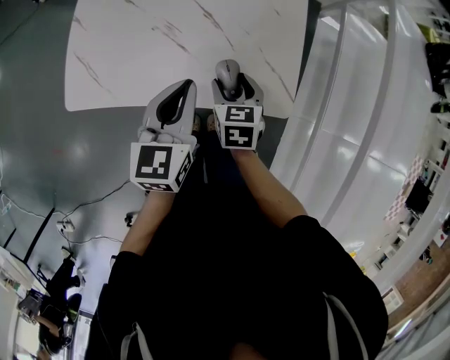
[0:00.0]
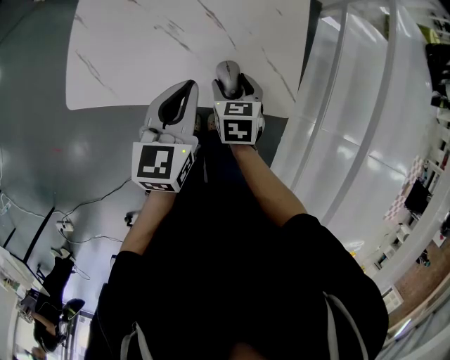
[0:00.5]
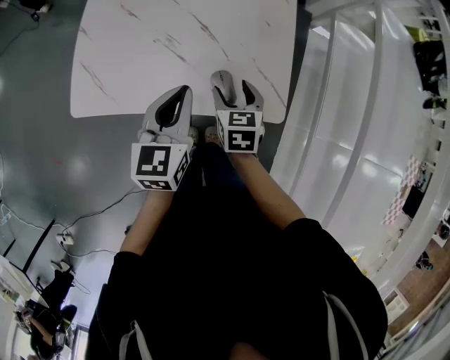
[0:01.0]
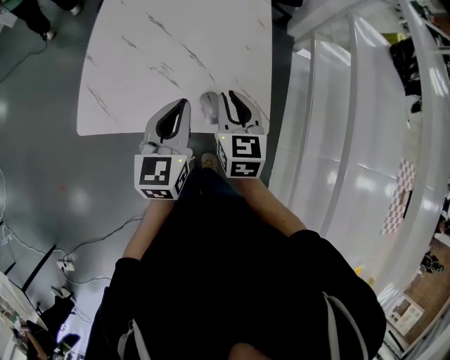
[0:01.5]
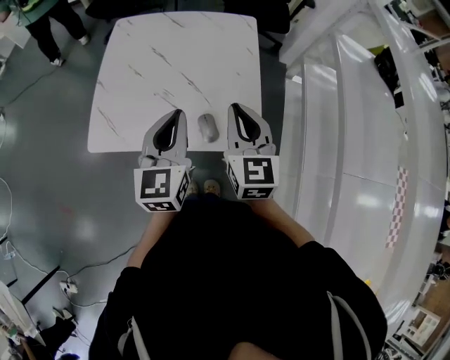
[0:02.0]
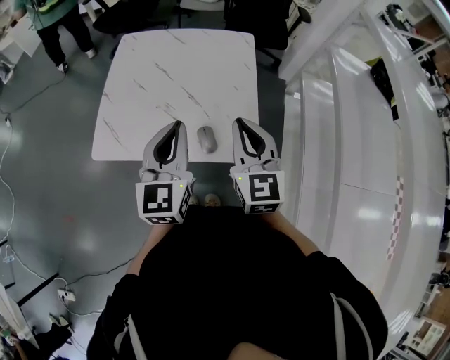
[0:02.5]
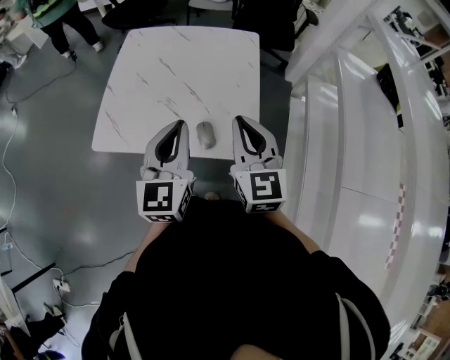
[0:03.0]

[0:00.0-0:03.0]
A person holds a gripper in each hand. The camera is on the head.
0:00.0 to 0:01.5: The left gripper moves upward, roughly 5 cm. Meanwhile the right gripper shifts approximately 15 cm upward, swivels roughly 20 degrees, and closes up.
0:01.5 to 0:03.0: The left gripper heads upward, covering about 10 cm; the right gripper heads upward and backward, covering approximately 15 cm, and turns by some 20 degrees.

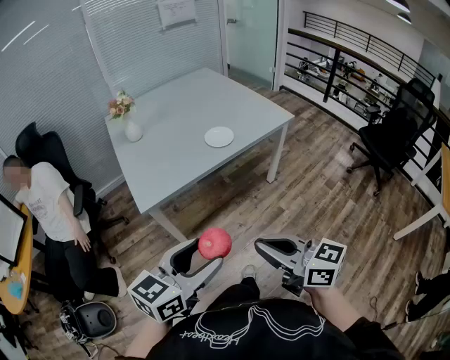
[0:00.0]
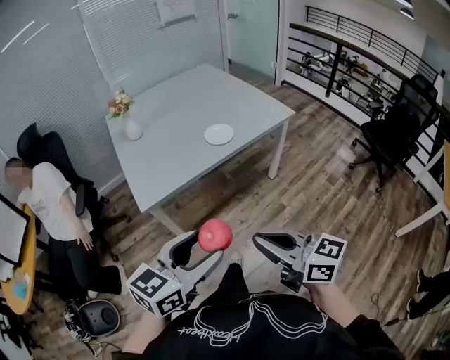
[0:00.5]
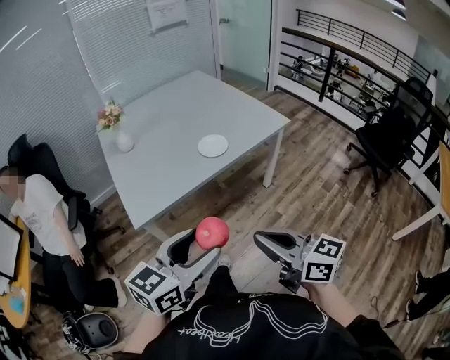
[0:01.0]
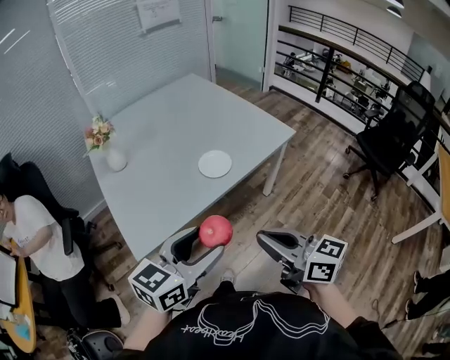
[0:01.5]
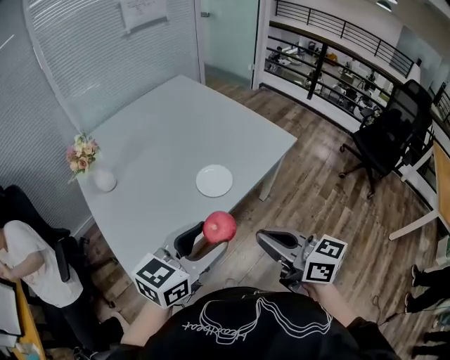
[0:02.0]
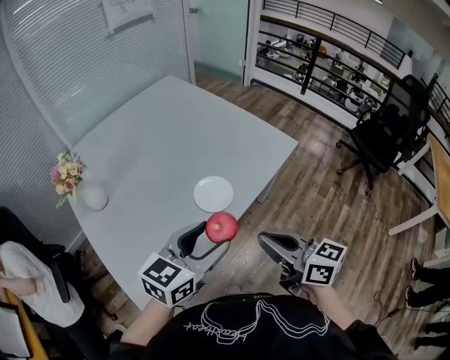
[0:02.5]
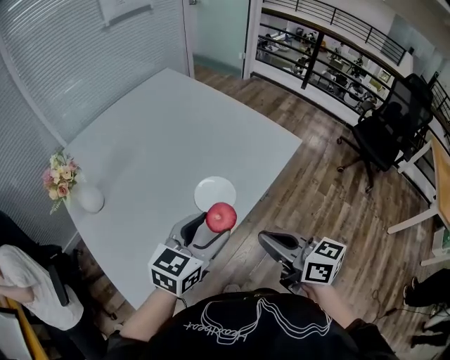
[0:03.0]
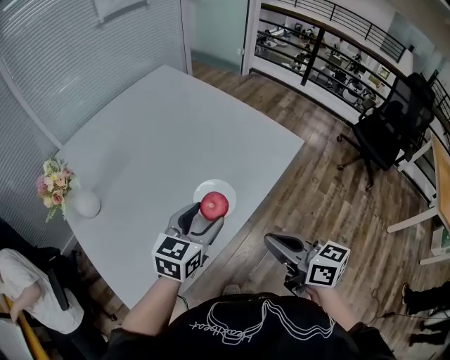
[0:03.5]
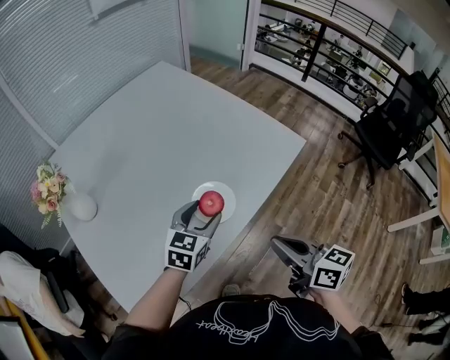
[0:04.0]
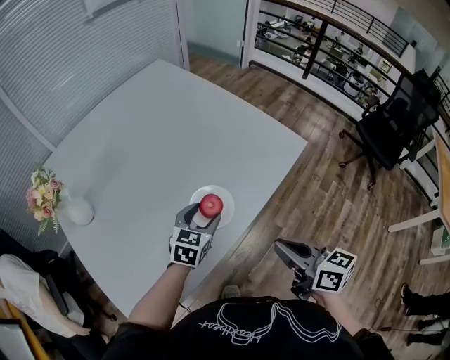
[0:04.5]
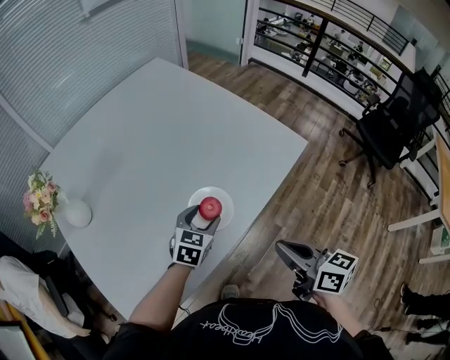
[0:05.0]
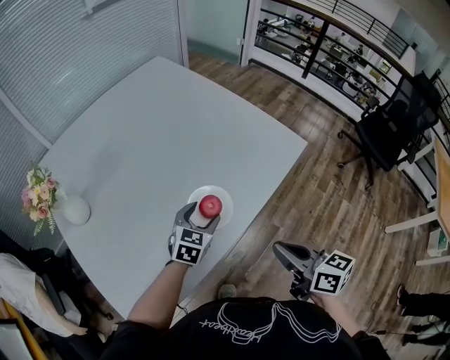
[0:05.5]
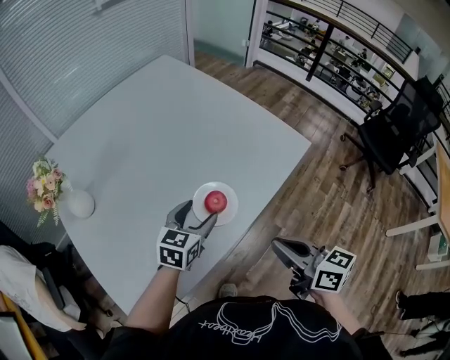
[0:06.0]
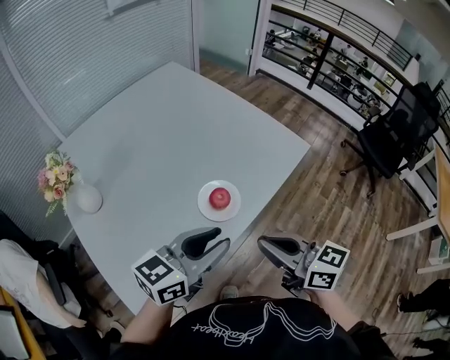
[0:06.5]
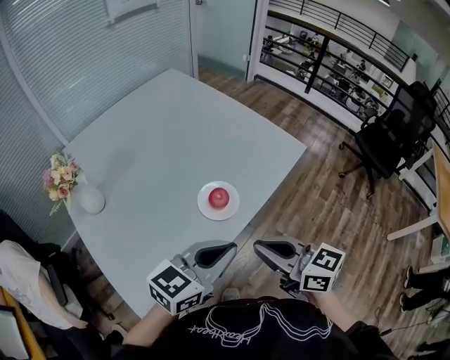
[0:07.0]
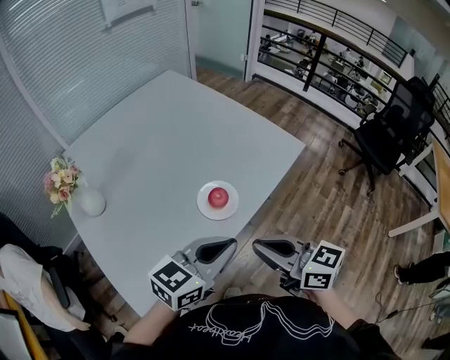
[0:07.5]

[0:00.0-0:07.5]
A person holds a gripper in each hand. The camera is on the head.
0:00.0 to 0:02.0: Both grippers move forward, some 35 cm.
0:02.0 to 0:04.0: The right gripper moves forward and downward, about 15 cm, while the left gripper travels forward and downward by some 30 cm.
0:04.0 to 0:05.5: The left gripper goes approximately 10 cm downward.
0:05.5 to 0:07.5: The left gripper moves upward and backward, approximately 25 cm, swivels approximately 30 degrees, and closes its fingers; the right gripper moves to the left, upward and backward, roughly 15 cm, and swivels roughly 20 degrees.

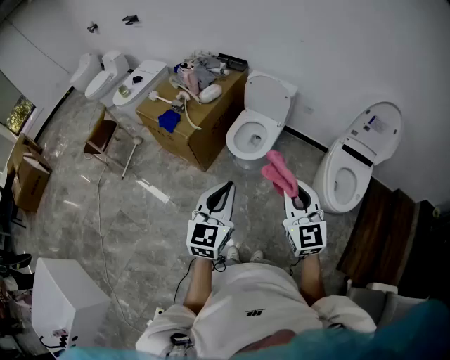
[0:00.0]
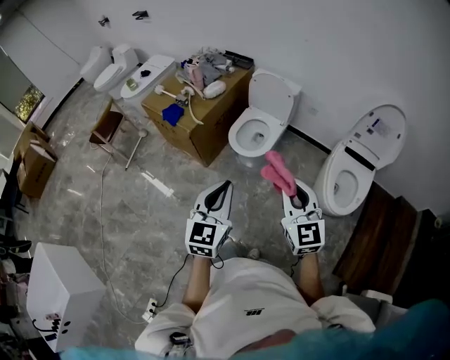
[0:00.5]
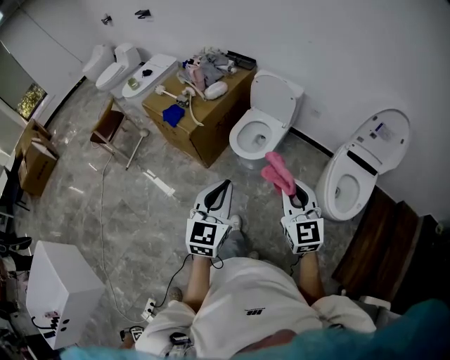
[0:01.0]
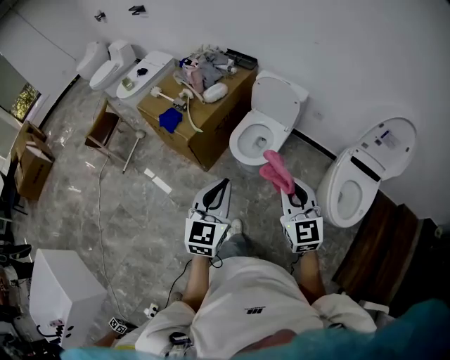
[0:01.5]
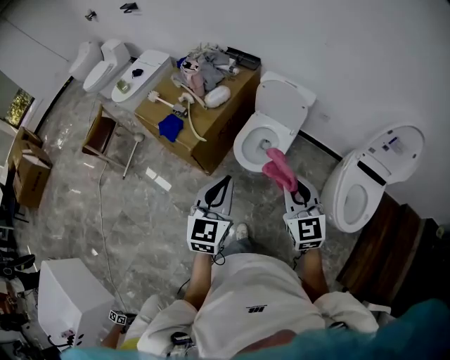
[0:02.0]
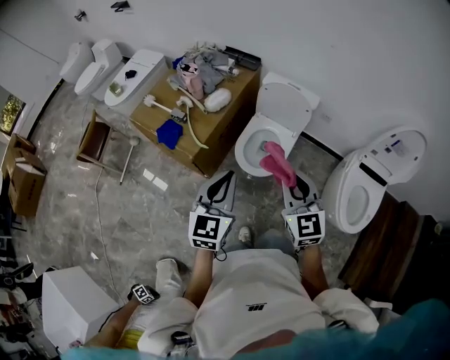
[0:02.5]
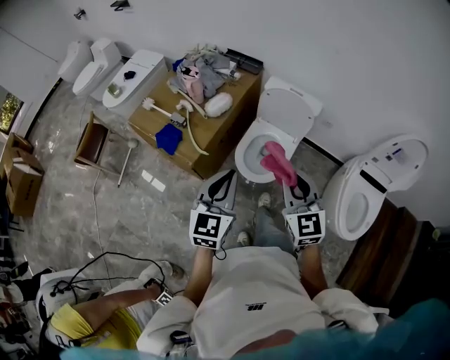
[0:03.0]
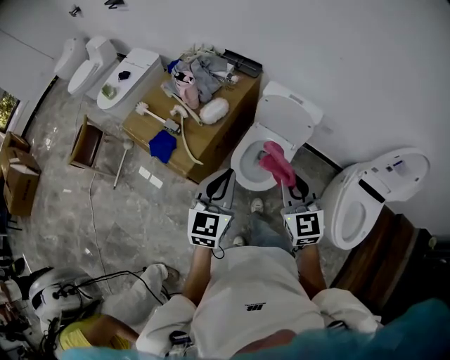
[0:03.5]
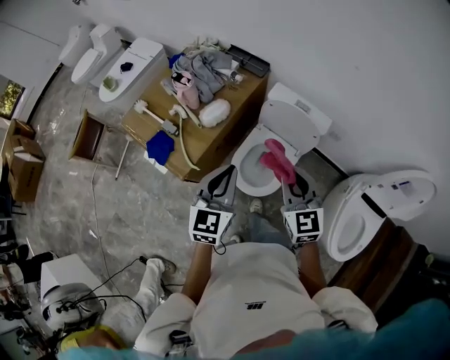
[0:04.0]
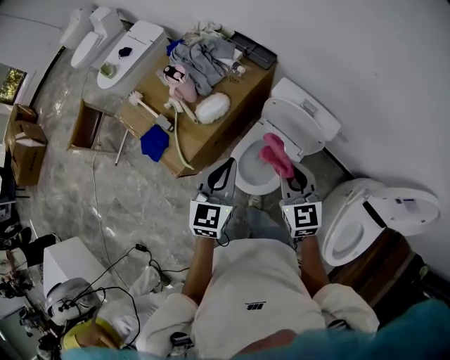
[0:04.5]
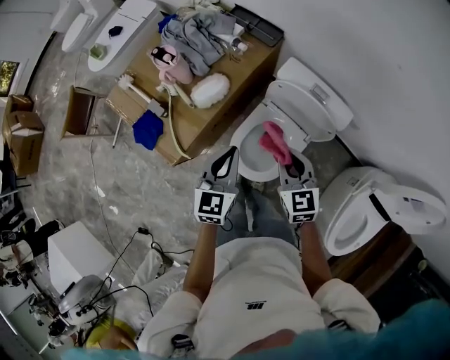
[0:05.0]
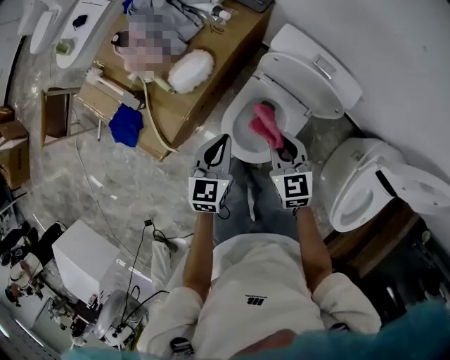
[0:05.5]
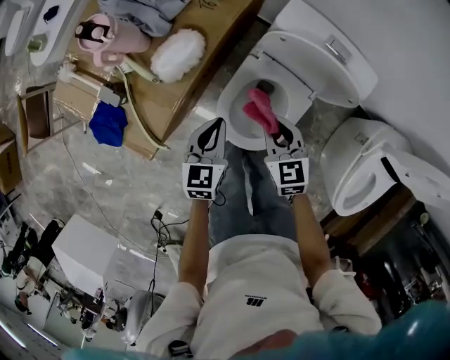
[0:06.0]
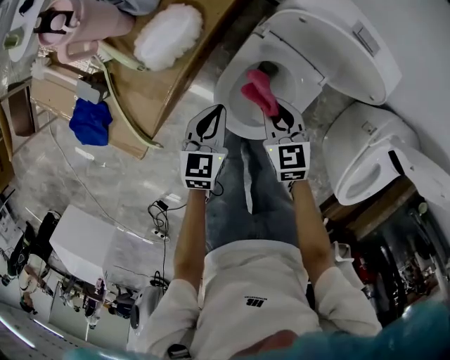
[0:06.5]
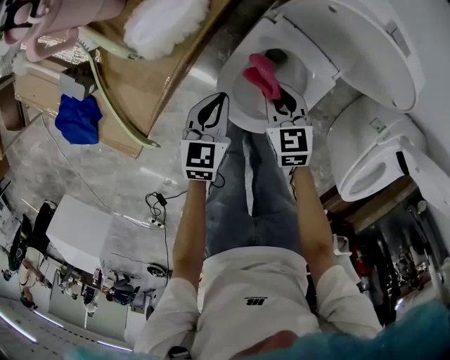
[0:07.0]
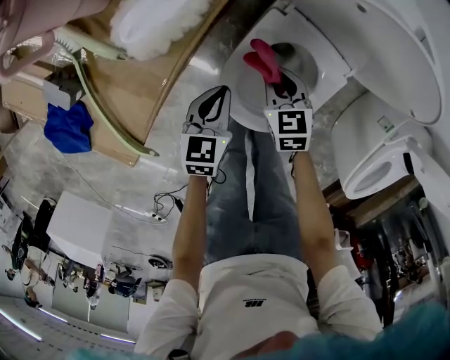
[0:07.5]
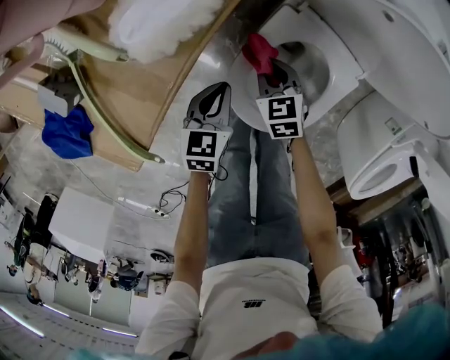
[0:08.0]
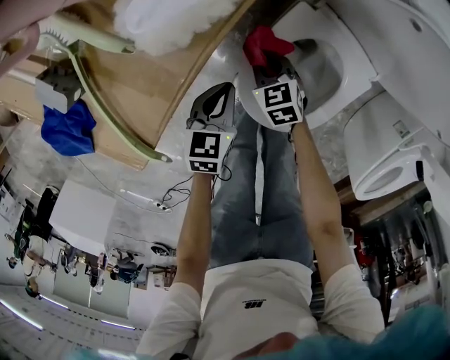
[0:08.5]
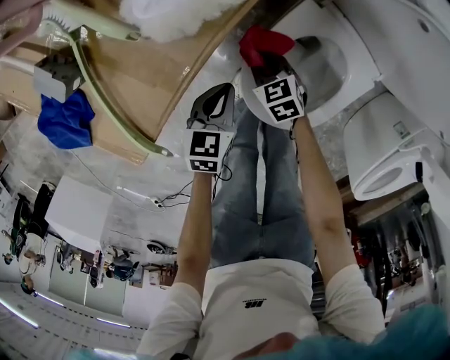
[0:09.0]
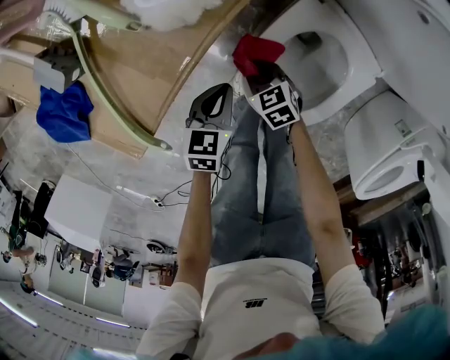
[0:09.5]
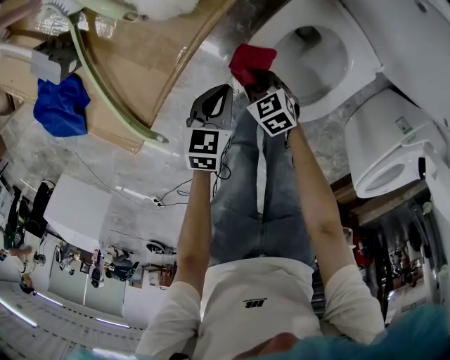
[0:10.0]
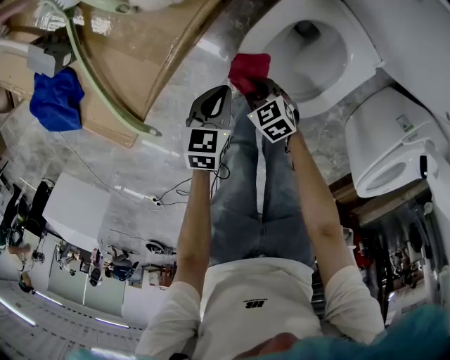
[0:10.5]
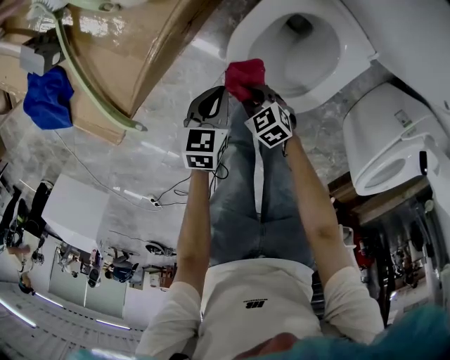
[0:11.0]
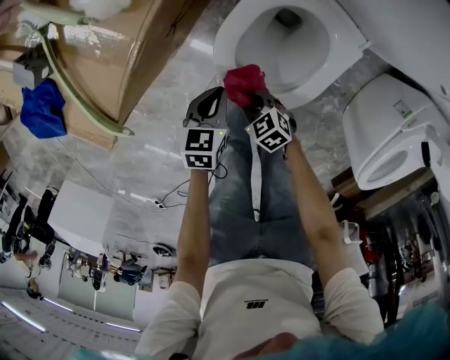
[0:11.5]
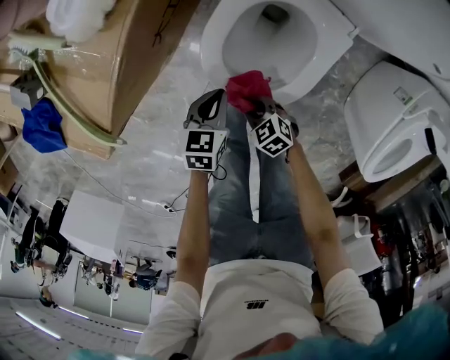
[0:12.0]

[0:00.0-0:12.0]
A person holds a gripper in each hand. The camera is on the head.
0:00.0 to 0:02.0: The two grippers go roughly 20 cm forward.
0:02.0 to 0:04.0: Both grippers travel together forward, some 30 cm.
0:04.0 to 0:06.0: The two grippers go about 40 cm downward and forward. The right gripper swivels about 30 degrees; the left gripper turns by about 20 degrees.
0:06.0 to 0:08.0: Both grippers move downward, some 25 cm.
0:08.0 to 0:10.0: The right gripper shifts roughly 15 cm backward, to the left and downward, and swivels some 20 degrees. Meanwhile the left gripper shifts some 5 cm backward.
0:10.0 to 0:12.0: The left gripper goes approximately 10 cm backward and to the right. The right gripper goes approximately 15 cm backward.

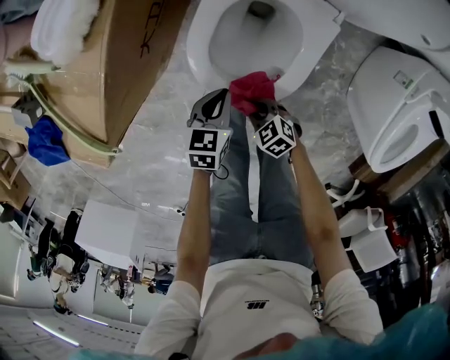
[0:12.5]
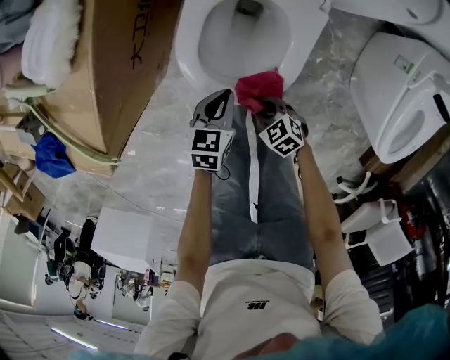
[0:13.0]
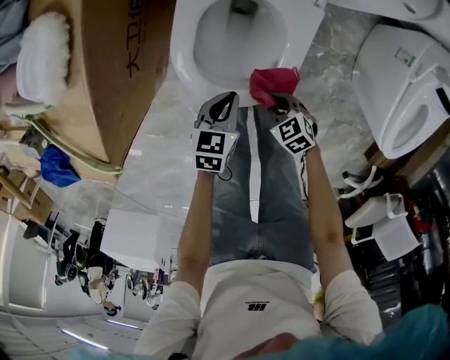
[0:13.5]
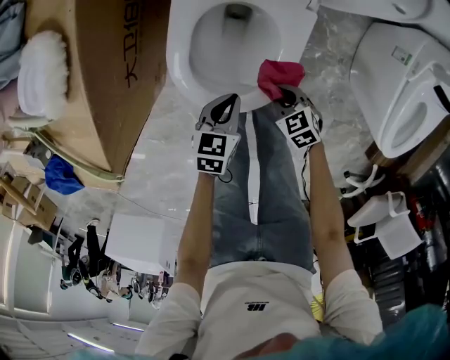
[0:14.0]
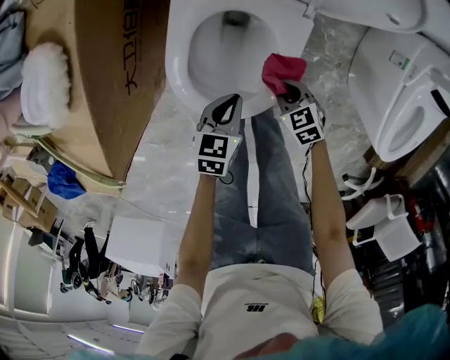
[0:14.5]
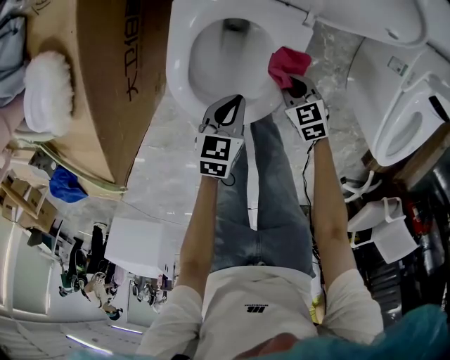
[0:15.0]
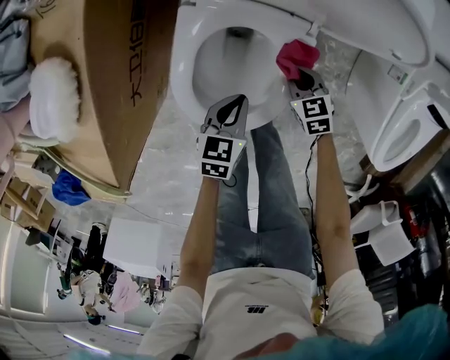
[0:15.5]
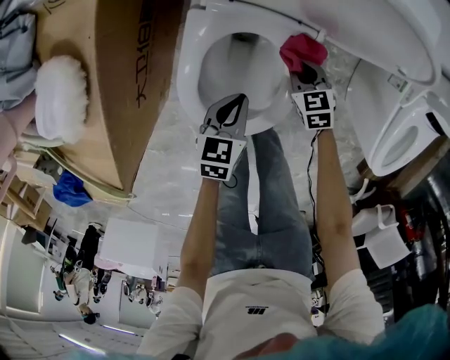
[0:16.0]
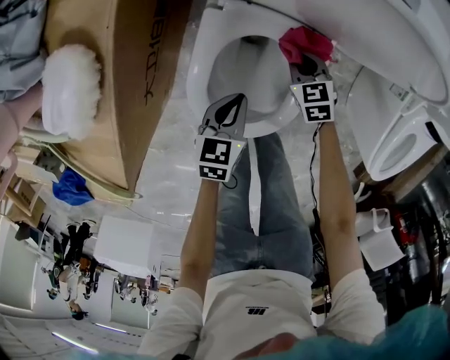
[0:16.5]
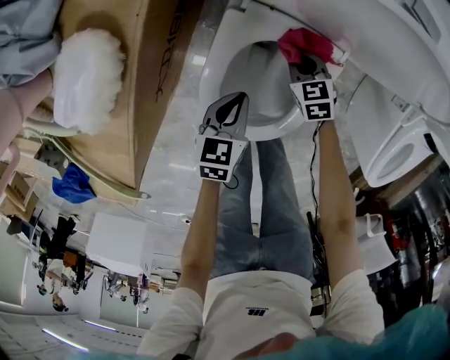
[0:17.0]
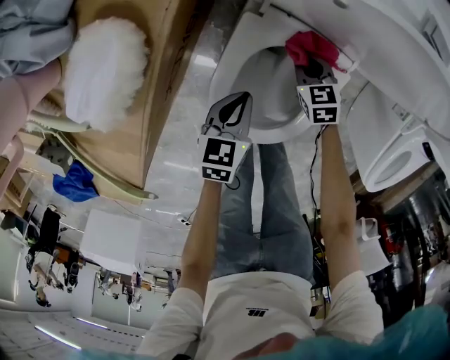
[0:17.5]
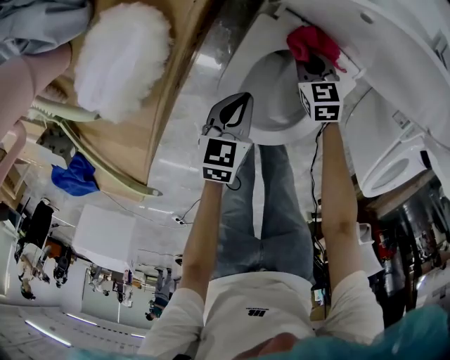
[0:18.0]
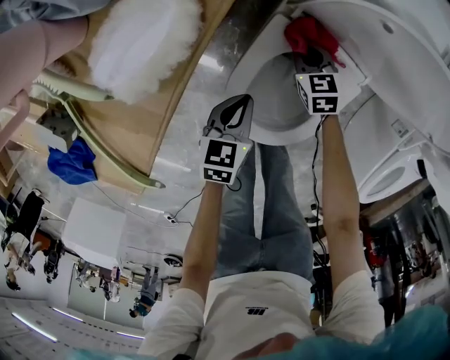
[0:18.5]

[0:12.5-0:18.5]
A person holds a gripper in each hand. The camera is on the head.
0:12.5 to 0:14.5: The right gripper goes approximately 15 cm to the right and forward, and changes its angle by about 30 degrees. The left gripper heads to the right, covering some 10 cm.
0:14.5 to 0:16.5: The left gripper shifts some 10 cm forward. The right gripper moves forward, about 20 cm.
0:16.5 to 0:18.5: Both grippers travel together to the left, some 15 cm.
